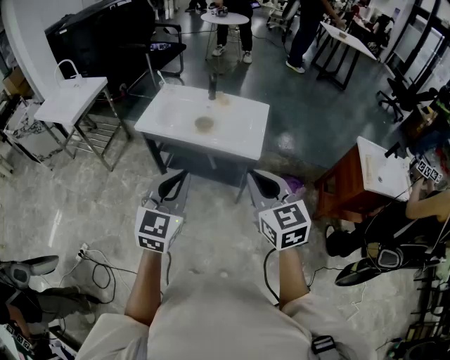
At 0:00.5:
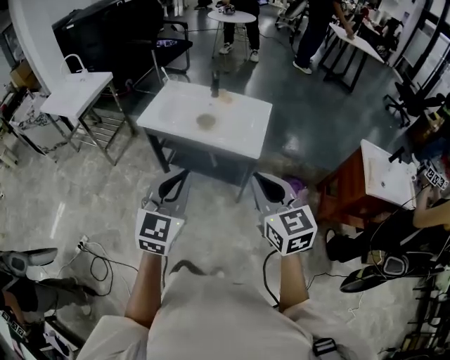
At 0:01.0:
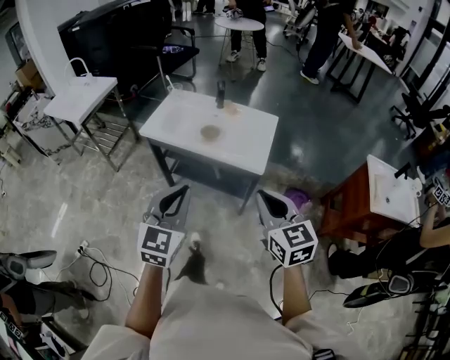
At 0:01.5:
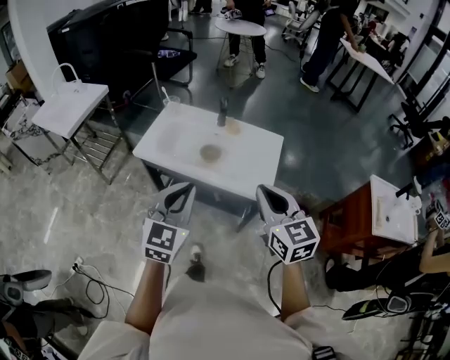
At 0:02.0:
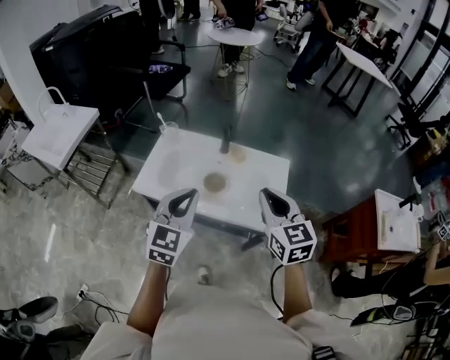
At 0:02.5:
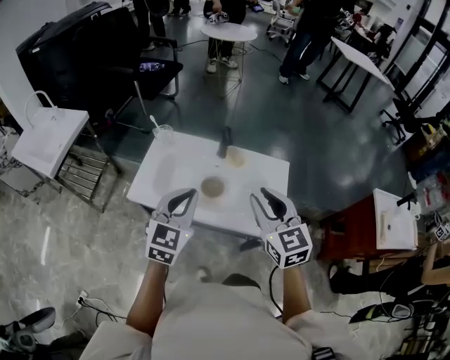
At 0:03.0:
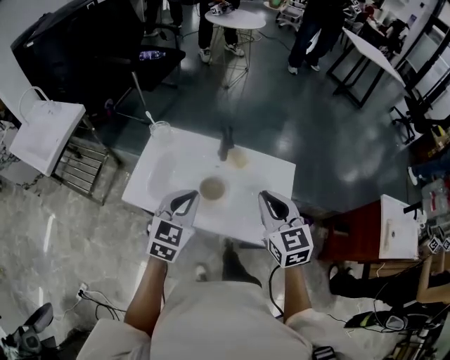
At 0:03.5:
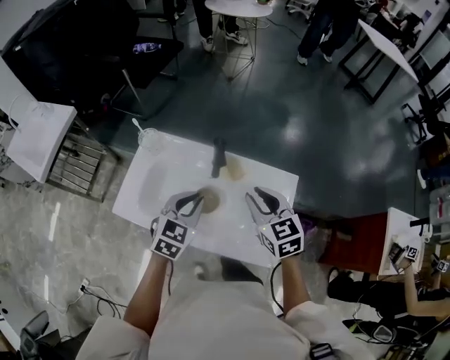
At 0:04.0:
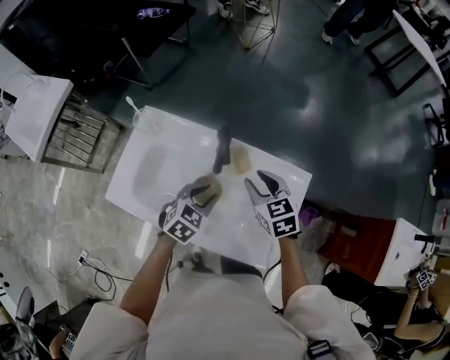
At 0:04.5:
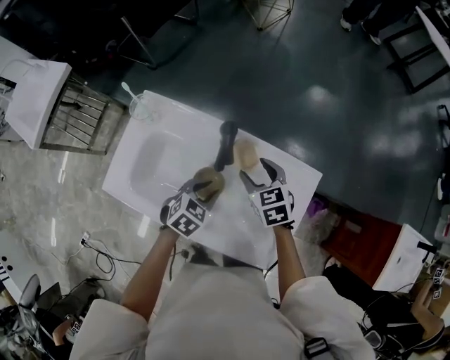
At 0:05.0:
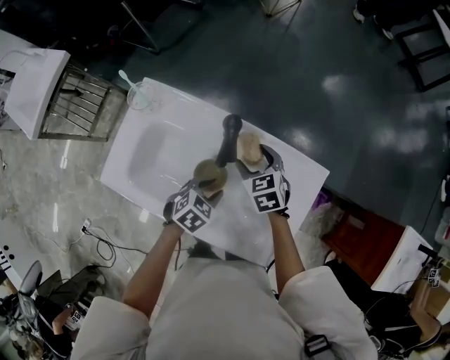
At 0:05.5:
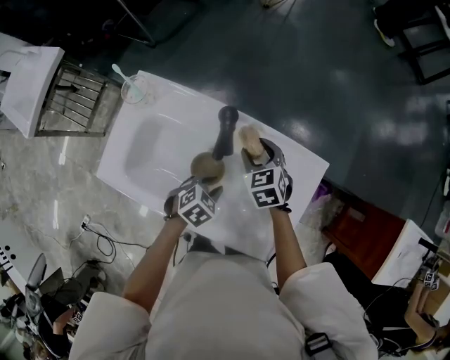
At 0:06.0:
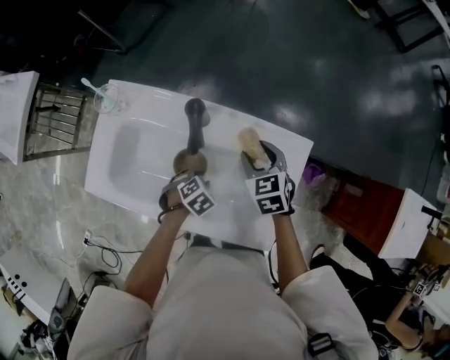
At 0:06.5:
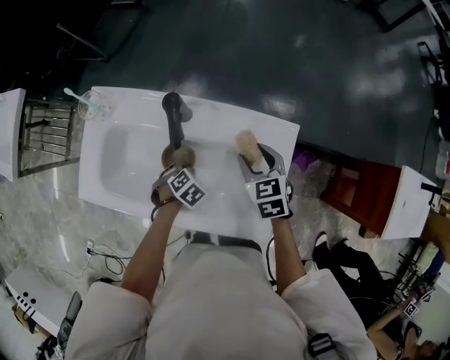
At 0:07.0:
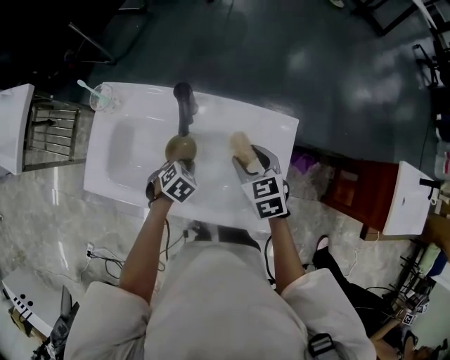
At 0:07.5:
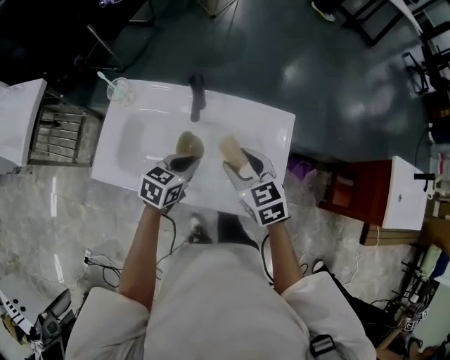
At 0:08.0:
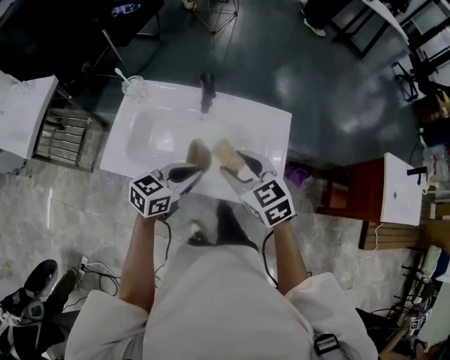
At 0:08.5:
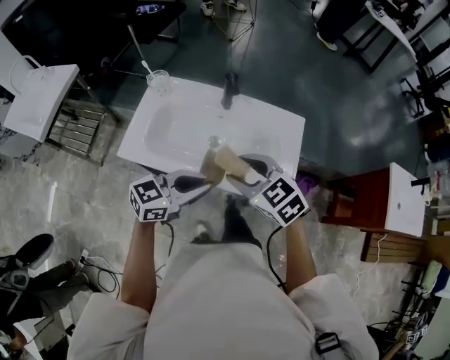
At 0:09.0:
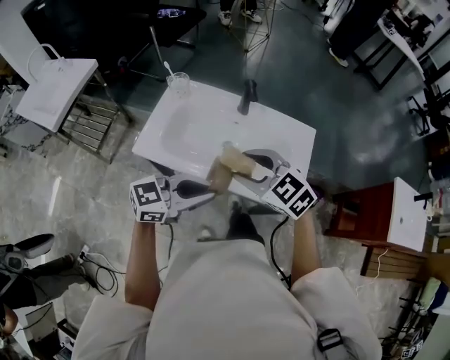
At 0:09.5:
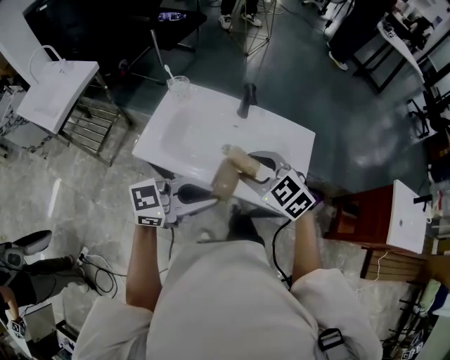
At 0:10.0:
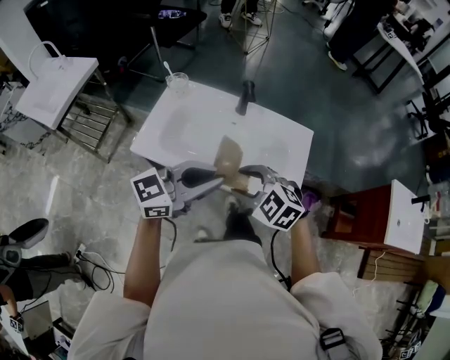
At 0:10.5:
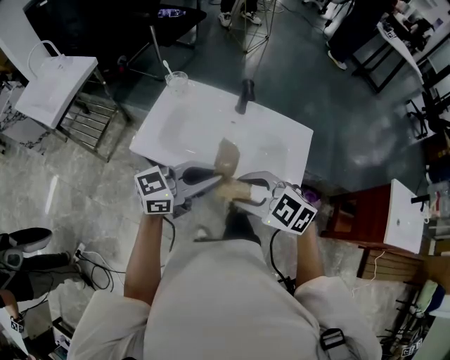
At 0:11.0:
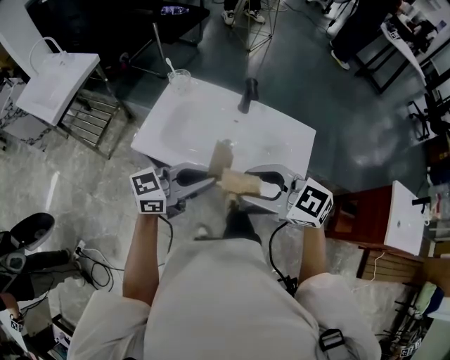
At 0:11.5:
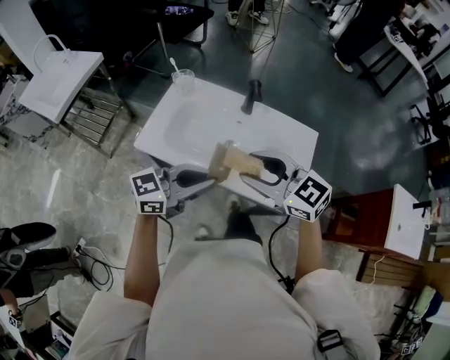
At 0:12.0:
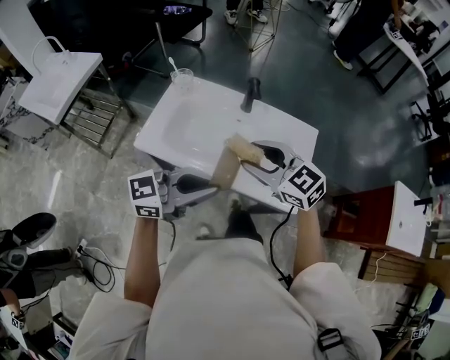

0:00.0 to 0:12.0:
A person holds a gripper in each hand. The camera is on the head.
0:00.0 to 0:02.0: Both grippers travel together forward, some 40 cm.
0:02.0 to 0:04.0: The two grippers go approximately 40 cm forward and downward. The right gripper swivels roughly 30 degrees, and opens its fingers, while the left gripper tilts its fingers roughly 30 degrees downward, and opens up.
0:04.0 to 0:06.0: The right gripper is displaced downward by approximately 10 cm. Meanwhile the left gripper shifts approximately 20 cm downward, and tilts its fingers about 30 degrees downward.
0:06.0 to 0:08.0: The left gripper travels upward by roughly 25 cm, points its fingers about 60 degrees further upward, and closes its fingers, while the right gripper moves approximately 30 cm.
0:08.0 to 0:10.0: The right gripper moves about 15 cm, and changes its angle by approximately 40 degrees, while the left gripper moves upward, roughly 15 cm, and changes its angle by approximately 30 degrees.
0:10.0 to 0:12.0: The right gripper is displaced upward by roughly 5 cm, and rotates approximately 30 degrees.

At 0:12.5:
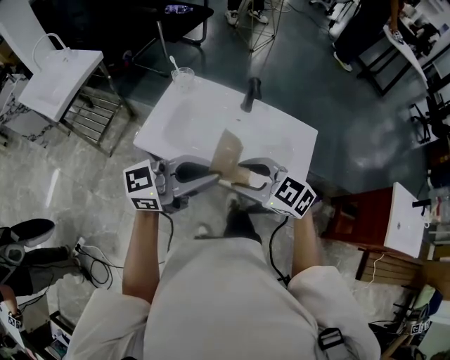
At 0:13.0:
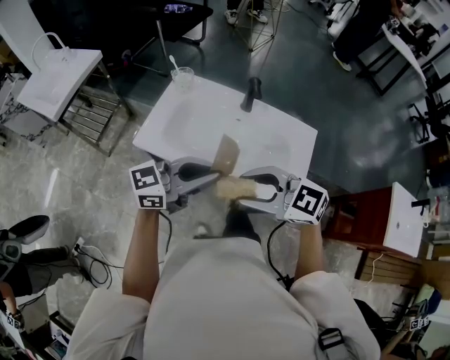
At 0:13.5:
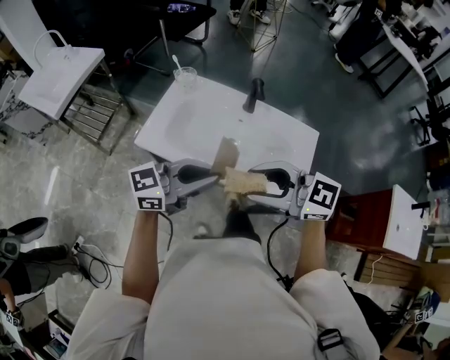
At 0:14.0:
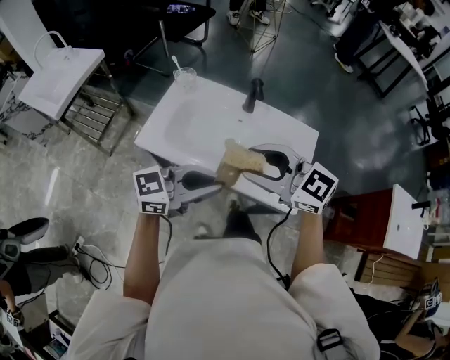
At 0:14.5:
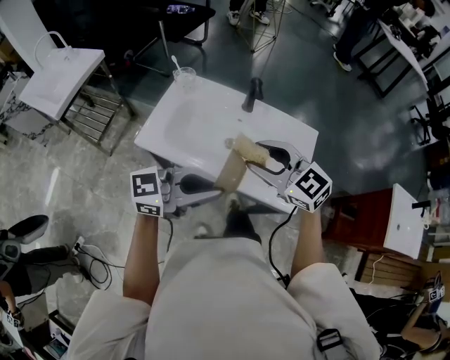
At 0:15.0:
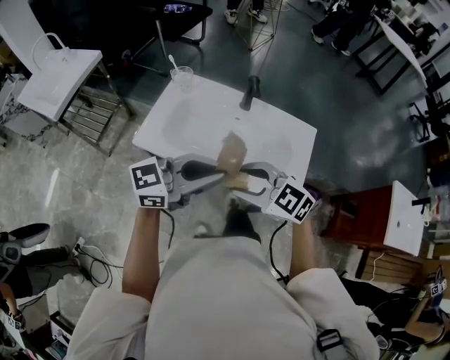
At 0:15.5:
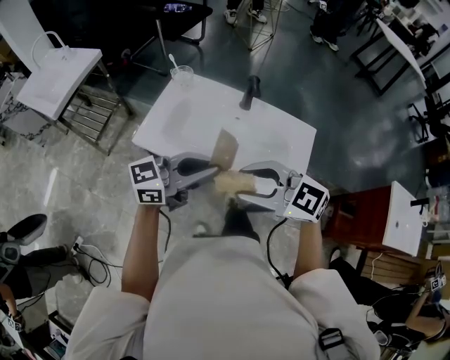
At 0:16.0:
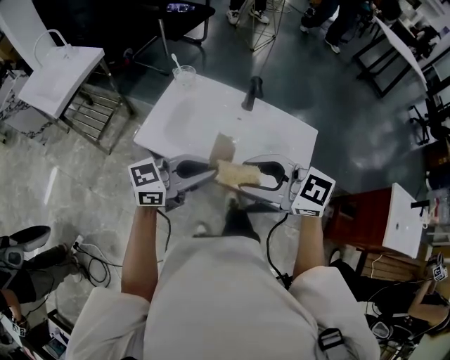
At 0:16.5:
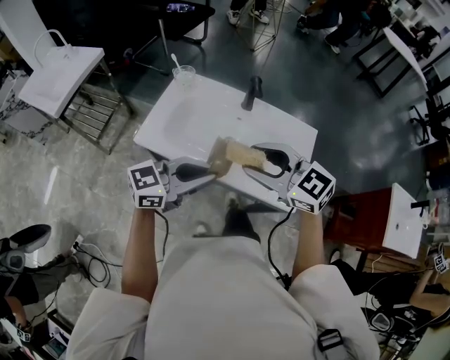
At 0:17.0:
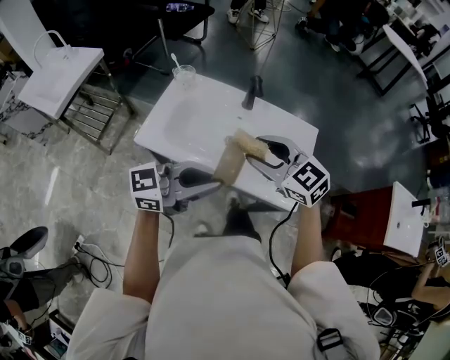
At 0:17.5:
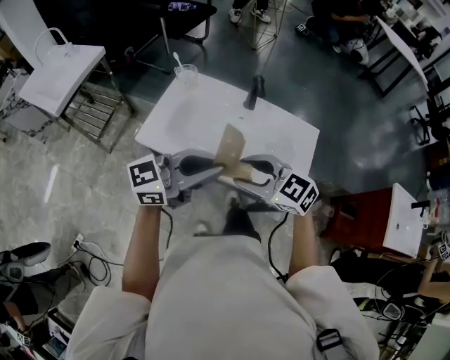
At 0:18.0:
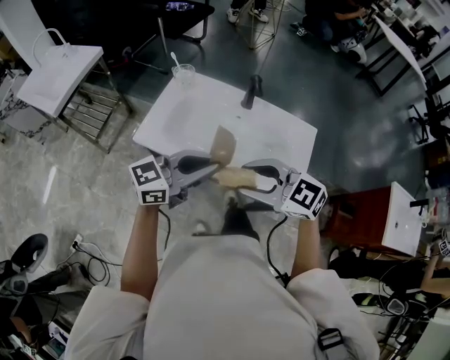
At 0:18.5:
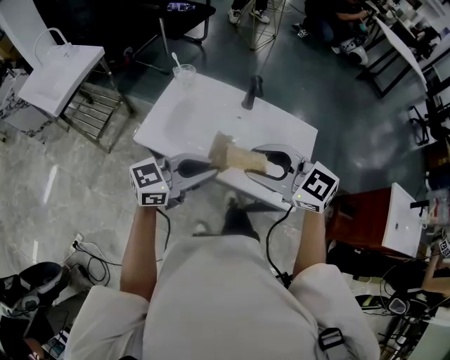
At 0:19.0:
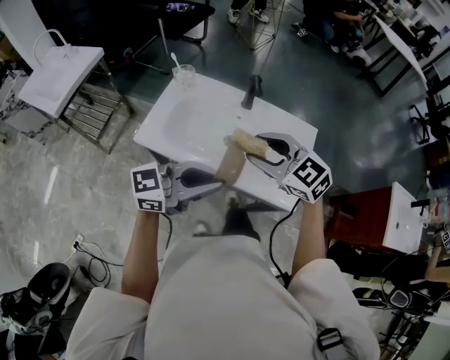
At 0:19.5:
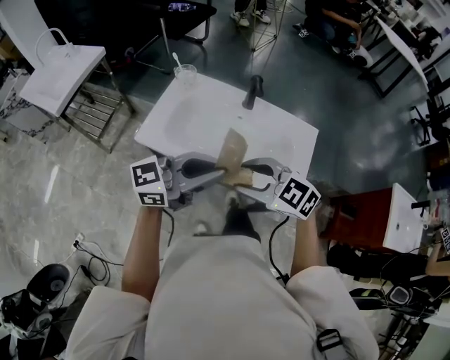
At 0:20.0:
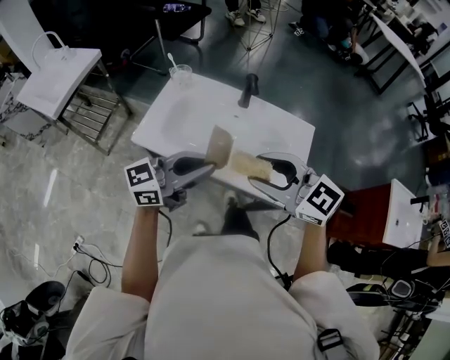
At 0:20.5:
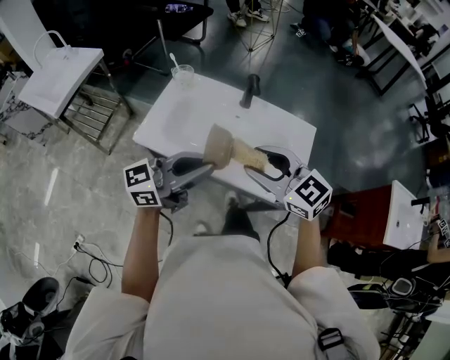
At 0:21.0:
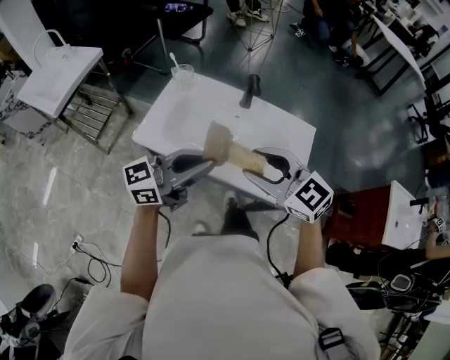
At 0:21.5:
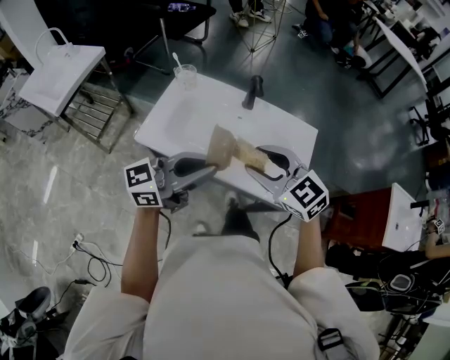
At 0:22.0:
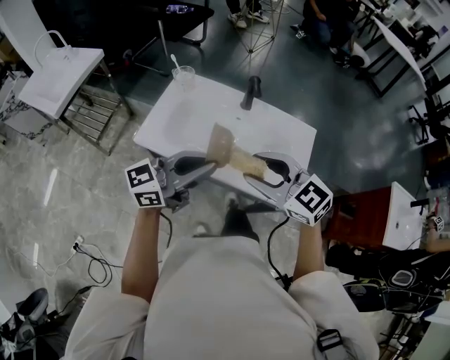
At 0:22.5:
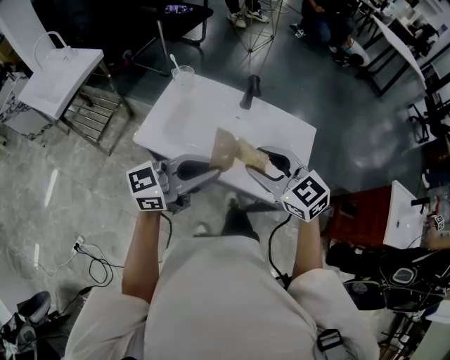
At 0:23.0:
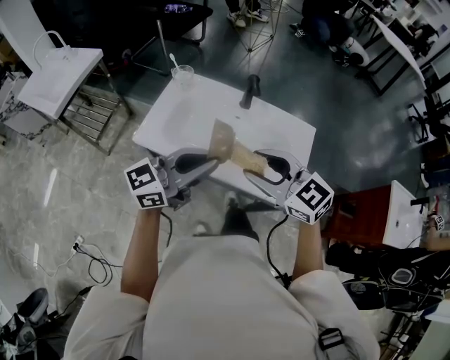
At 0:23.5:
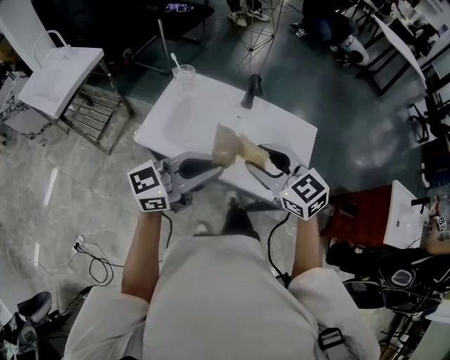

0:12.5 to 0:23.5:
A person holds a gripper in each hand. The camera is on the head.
0:12.5 to 0:14.5: The right gripper travels upward by roughly 5 cm.
0:14.5 to 0:16.0: The right gripper travels downward and back again, roughly 5 cm each way.
0:18.0 to 0:20.0: The right gripper swings up and down, roughly 10 cm each way, with 2 reversals.
0:20.0 to 0:21.5: The right gripper changes place by about 5 cm.
0:21.5 to 0:23.5: The grippers make only small movements.

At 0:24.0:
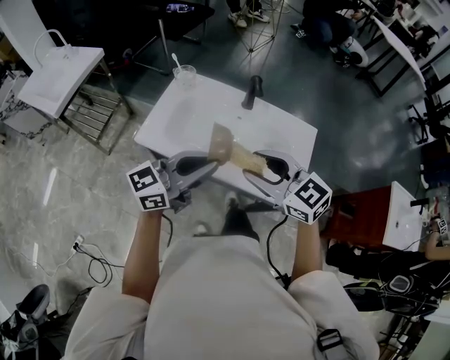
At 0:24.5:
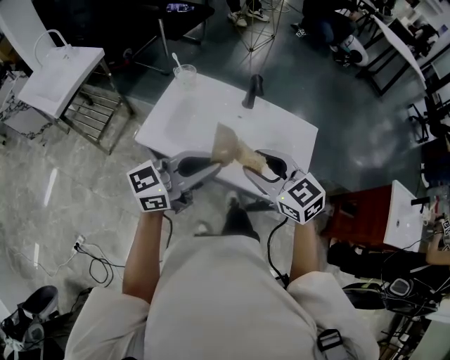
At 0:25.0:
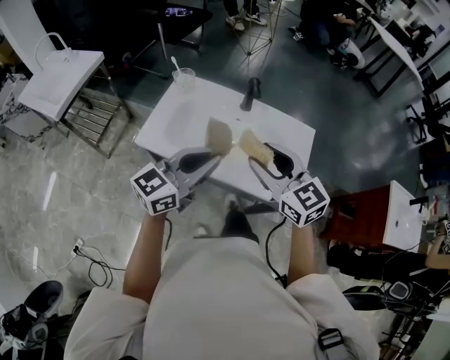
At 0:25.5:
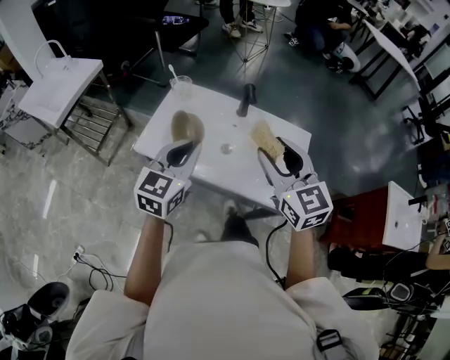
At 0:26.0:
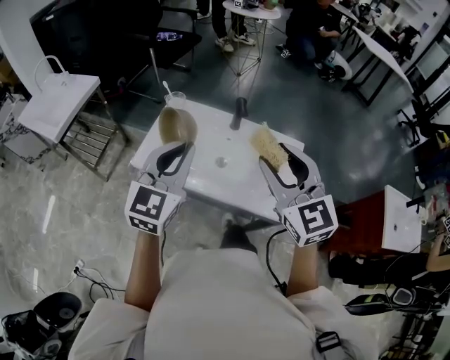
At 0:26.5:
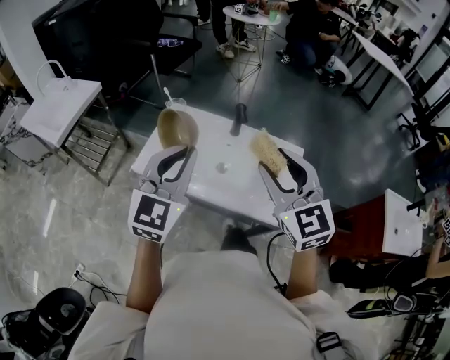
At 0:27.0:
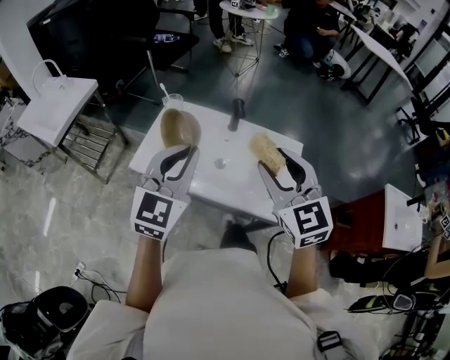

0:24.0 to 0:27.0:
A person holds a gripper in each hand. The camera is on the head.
0:24.0 to 0:25.5: The right gripper travels upward by about 5 cm, and changes its angle by approximately 30 degrees. Meanwhile the left gripper moves about 5 cm, and turns by about 40 degrees.
0:25.5 to 0:27.0: The left gripper travels upward by roughly 10 cm.

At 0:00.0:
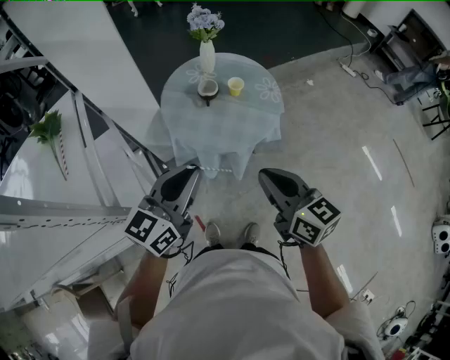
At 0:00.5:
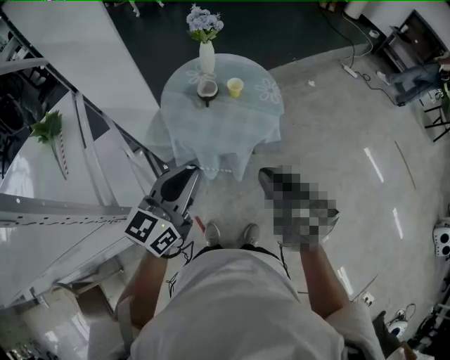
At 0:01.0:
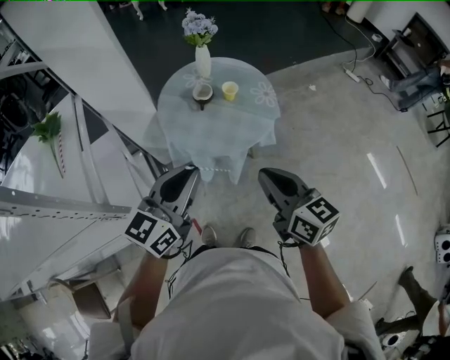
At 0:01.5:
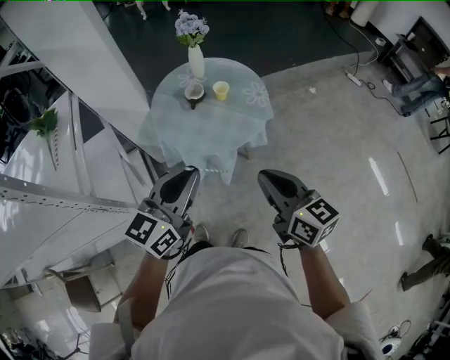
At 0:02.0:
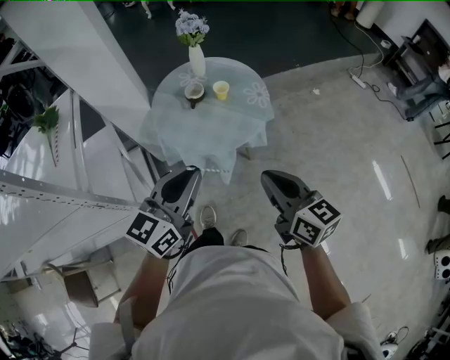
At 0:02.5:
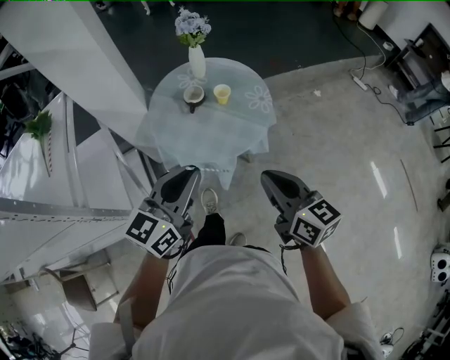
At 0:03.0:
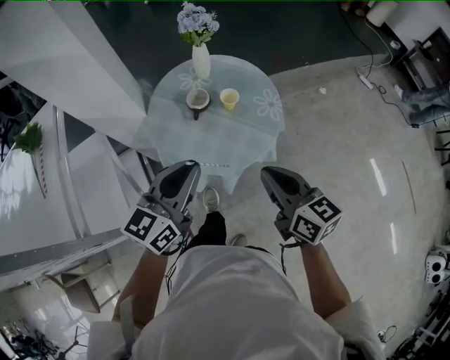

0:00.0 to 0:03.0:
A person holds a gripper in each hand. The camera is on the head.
0:00.0 to 0:01.5: The two grippers go approximately 10 cm to the right.
0:01.5 to 0:03.0: Both grippers move forward, some 15 cm.
